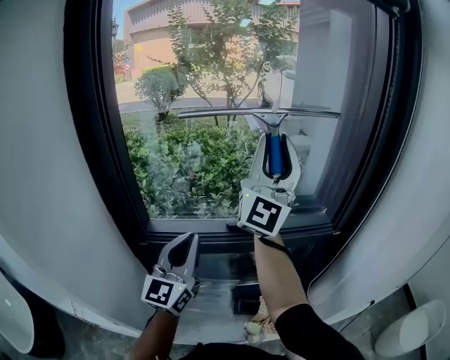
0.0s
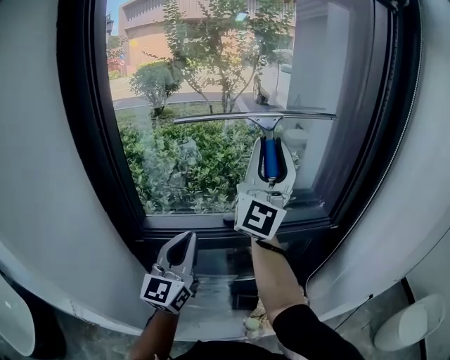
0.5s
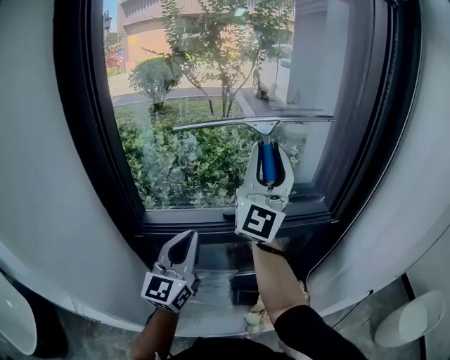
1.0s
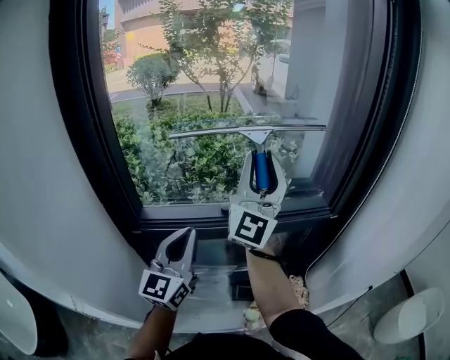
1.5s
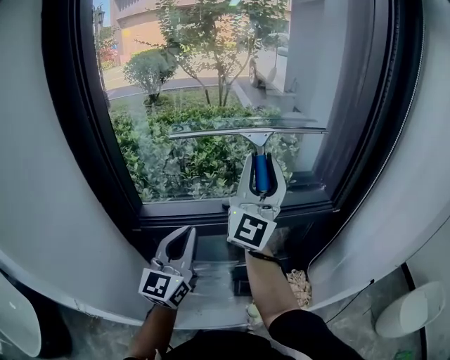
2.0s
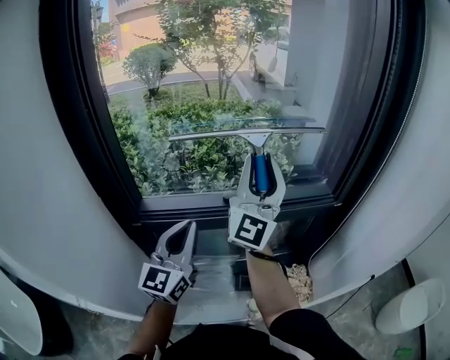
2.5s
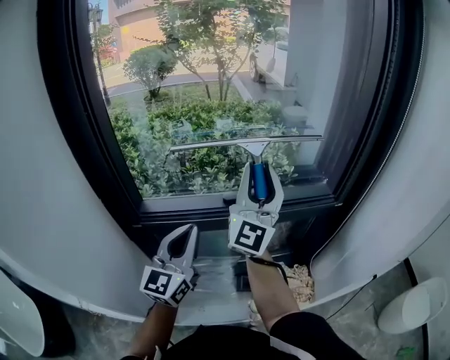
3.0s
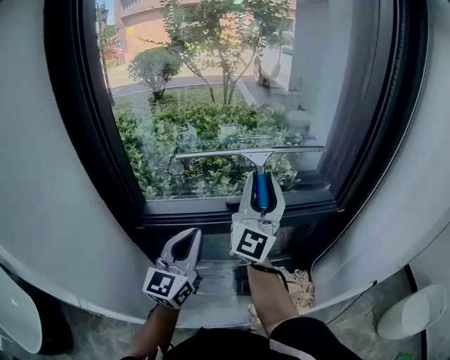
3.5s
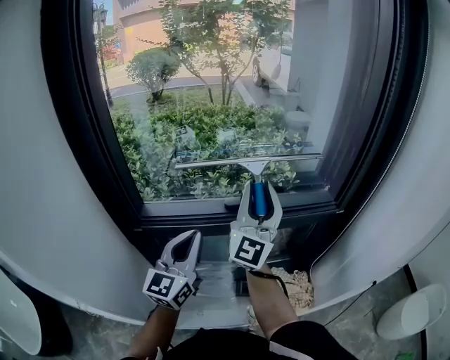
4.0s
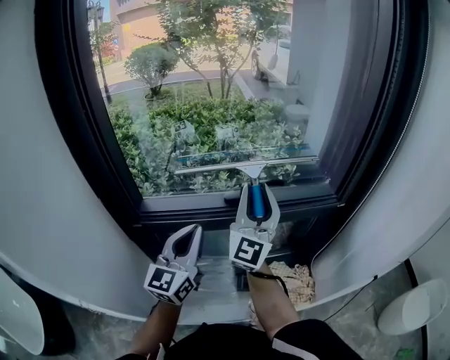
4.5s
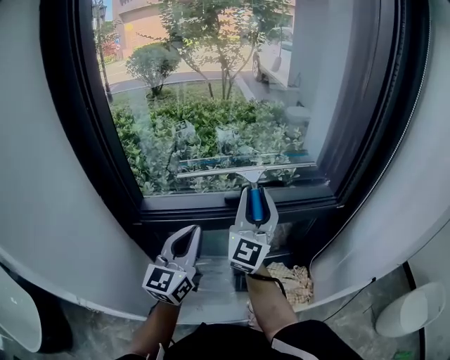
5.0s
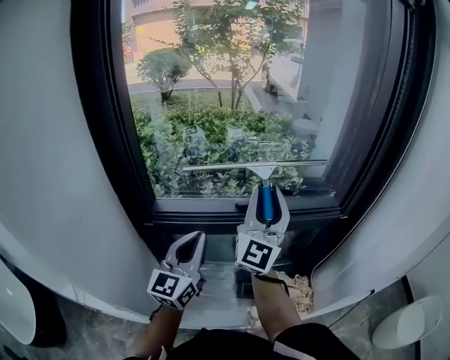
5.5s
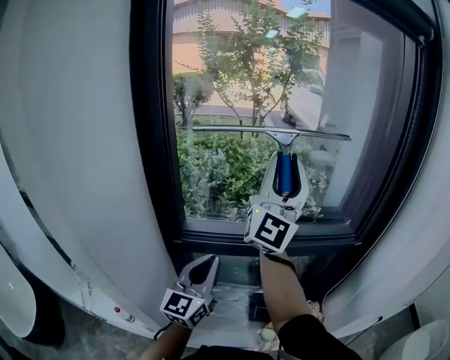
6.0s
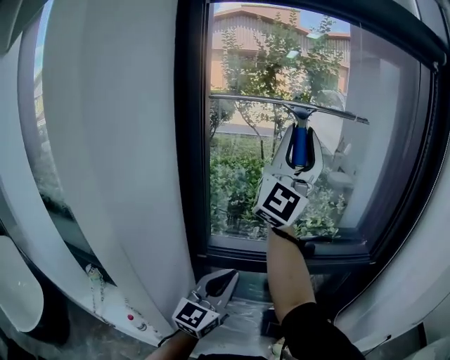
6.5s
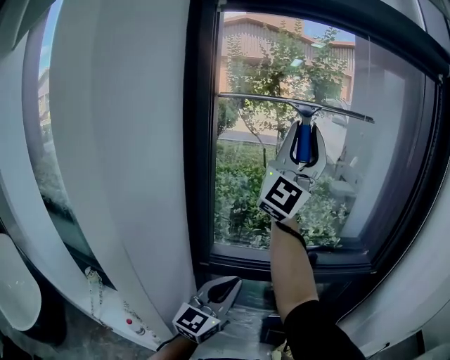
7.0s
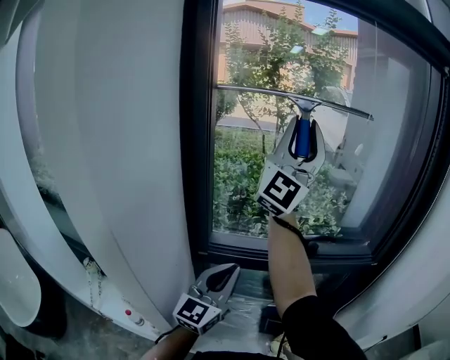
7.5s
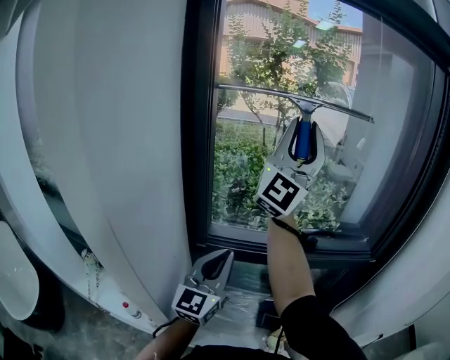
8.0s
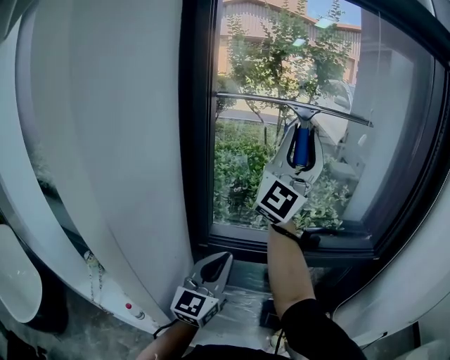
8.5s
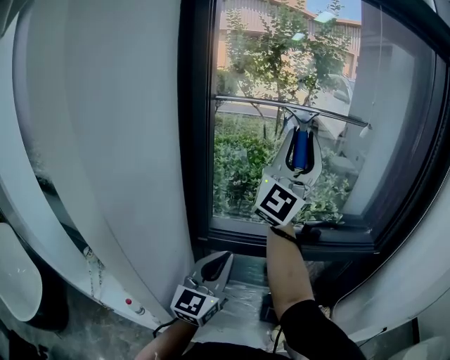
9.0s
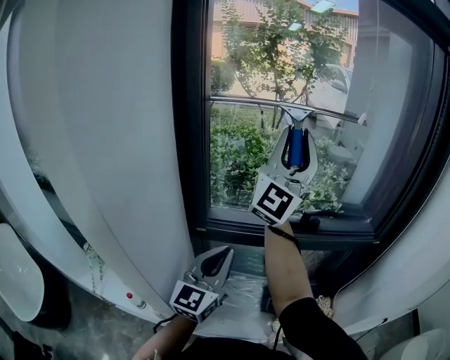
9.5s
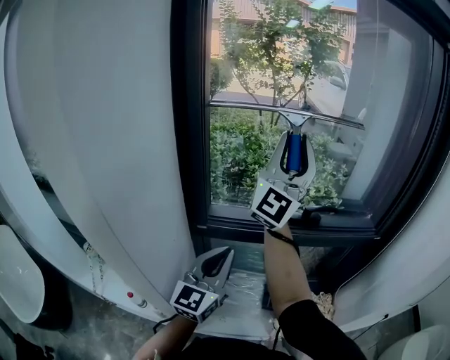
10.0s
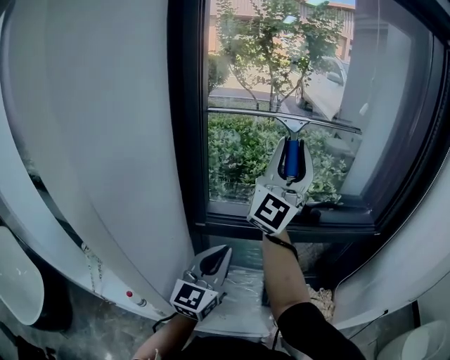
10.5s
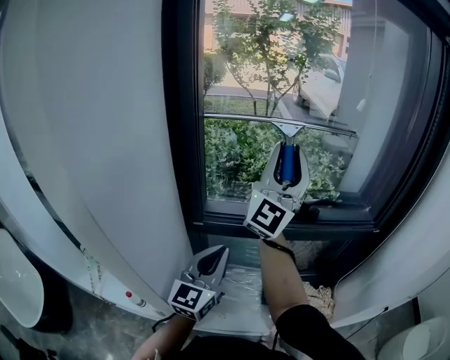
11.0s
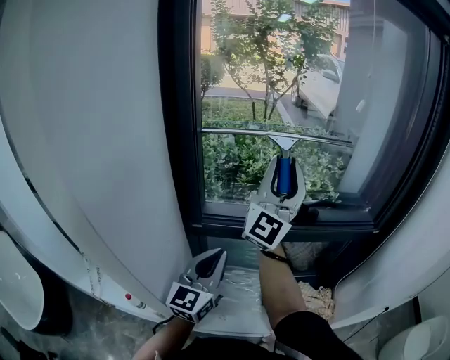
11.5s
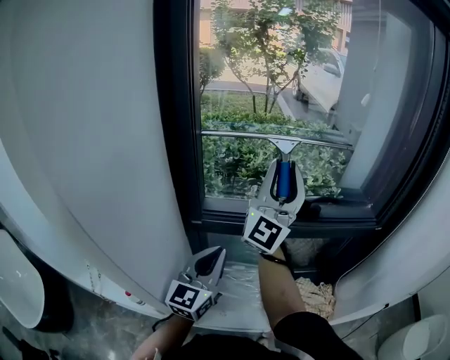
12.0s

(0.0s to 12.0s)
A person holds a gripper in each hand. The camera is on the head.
0.0s - 2.0s: The right gripper heads downward, covering approximately 10 cm.
2.0s - 4.0s: The right gripper heads downward, covering approximately 10 cm.
4.0s - 6.0s: The right gripper heads upward, covering roughly 15 cm. Meanwhile the left gripper shifts about 5 cm backward.
6.0s - 8.0s: The left gripper changes place by approximately 5 cm. The right gripper moves upward and to the left, some 10 cm.
8.0s - 10.0s: The right gripper is displaced downward by some 10 cm.
10.0s - 12.0s: The right gripper heads downward, covering approximately 10 cm.

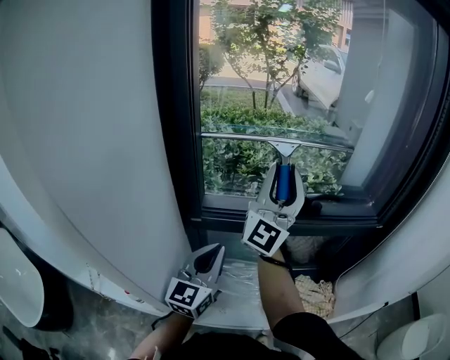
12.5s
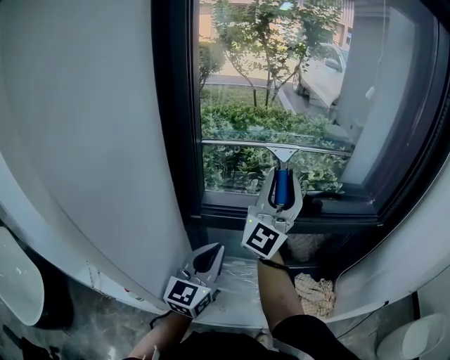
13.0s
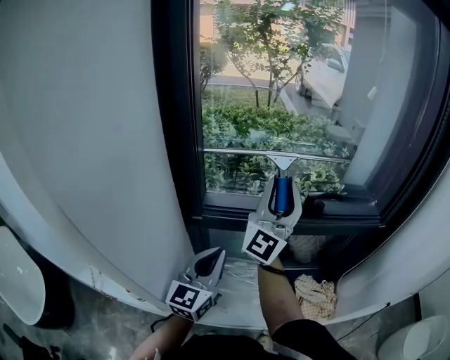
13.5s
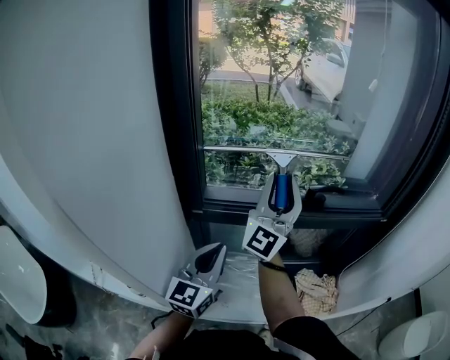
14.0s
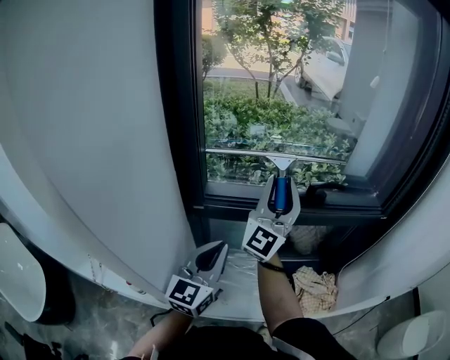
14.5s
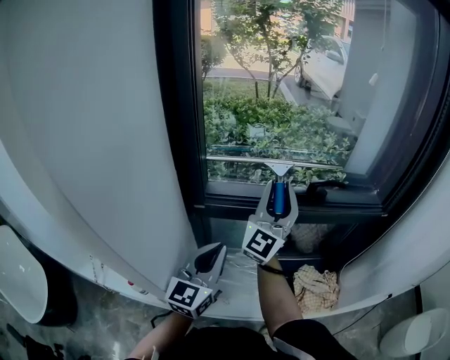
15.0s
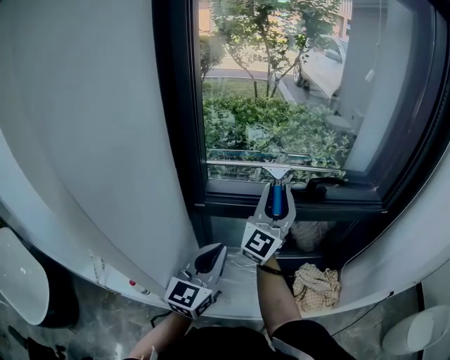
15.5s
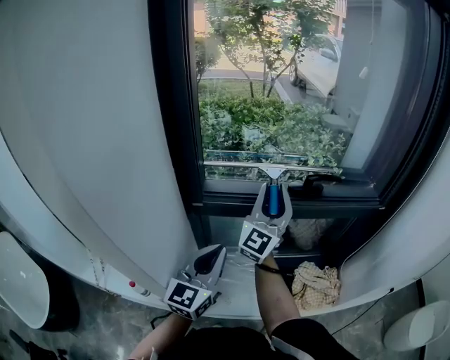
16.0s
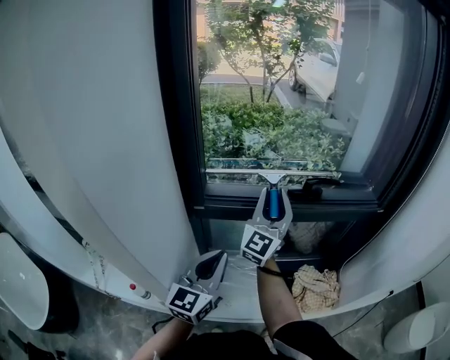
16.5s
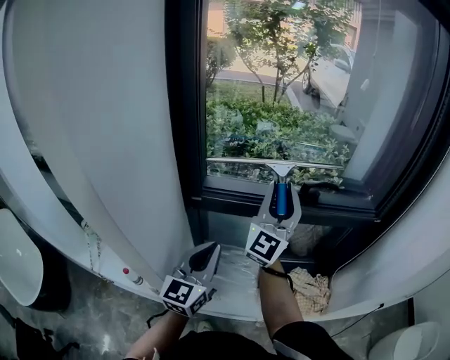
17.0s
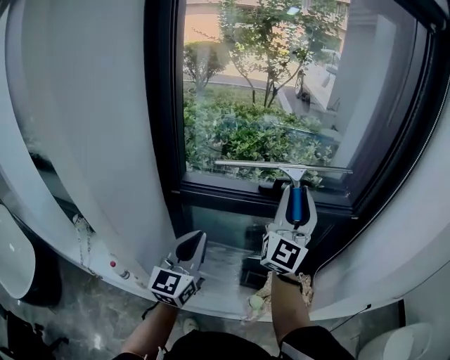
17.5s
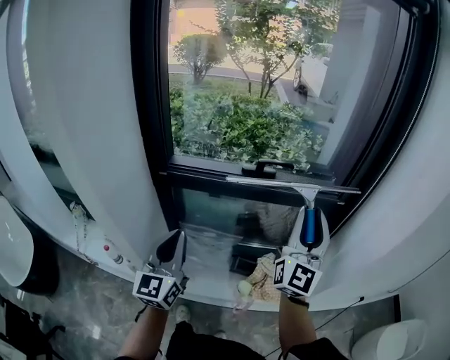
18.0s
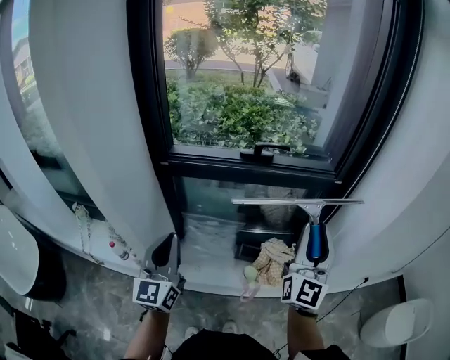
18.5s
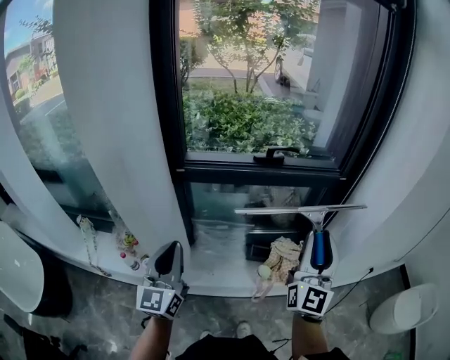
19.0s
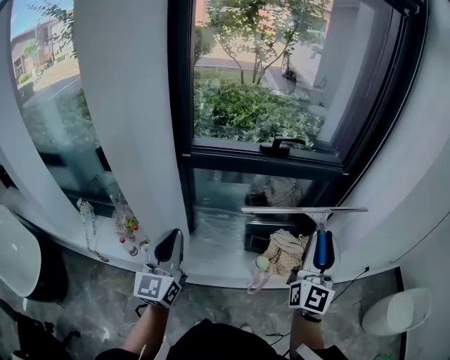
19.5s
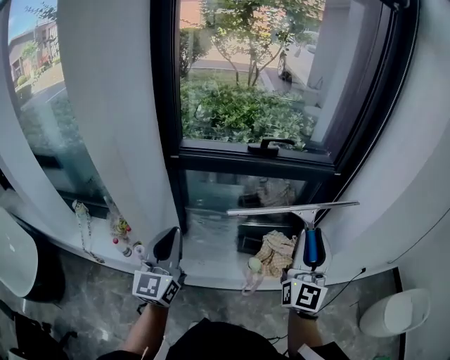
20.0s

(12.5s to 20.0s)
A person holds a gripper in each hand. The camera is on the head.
12.5s - 14.5s: The right gripper goes approximately 10 cm downward.
14.5s - 16.5s: The right gripper is displaced downward by roughly 5 cm.
16.5s - 18.0s: The left gripper moves backward and to the right, about 10 cm; the right gripper shifts approximately 30 cm to the right and backward.
18.0s - 20.0s: The right gripper shifts roughly 15 cm backward, while the left gripper moves backward, approximately 10 cm.

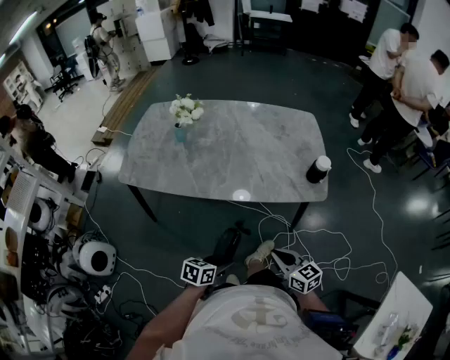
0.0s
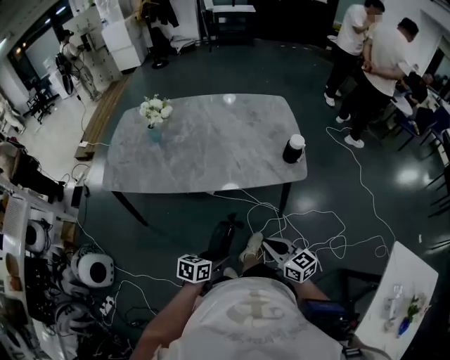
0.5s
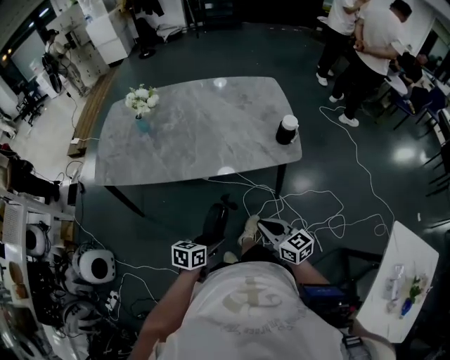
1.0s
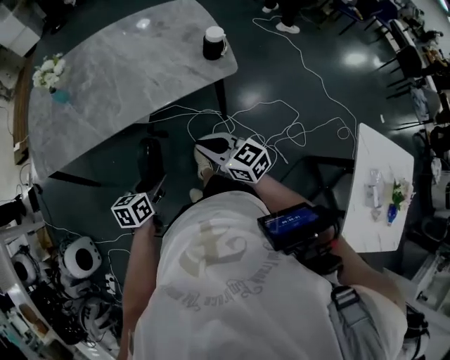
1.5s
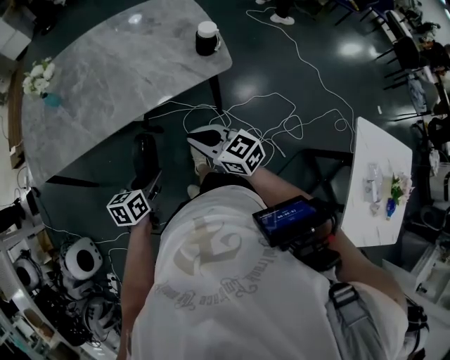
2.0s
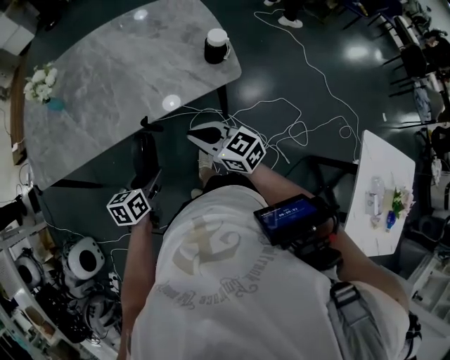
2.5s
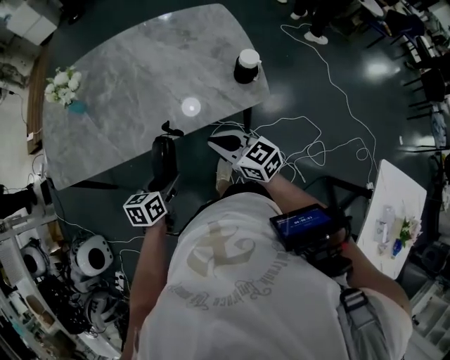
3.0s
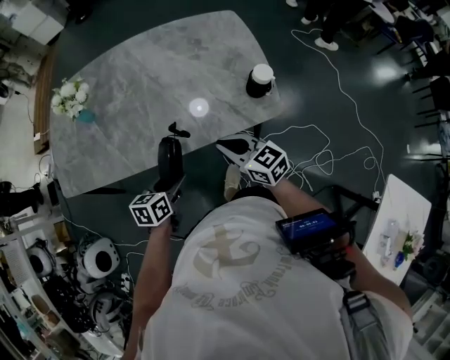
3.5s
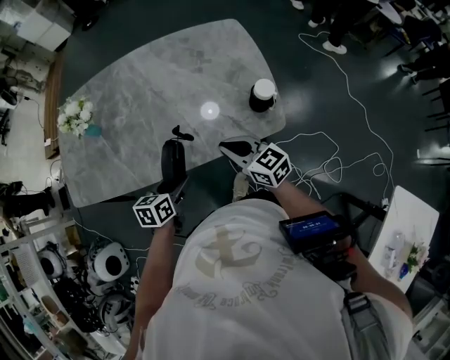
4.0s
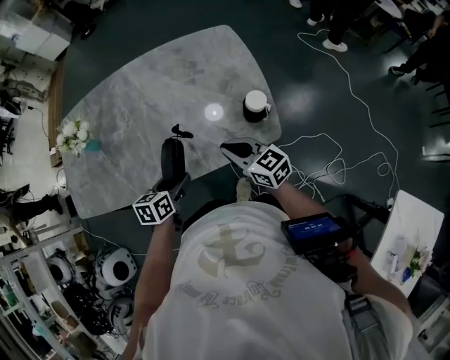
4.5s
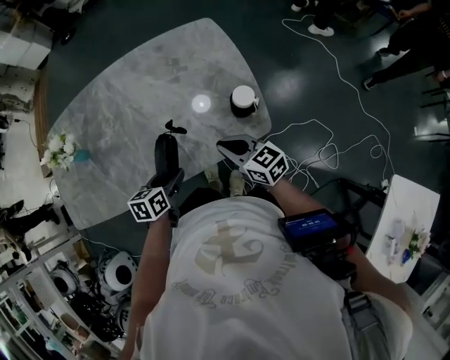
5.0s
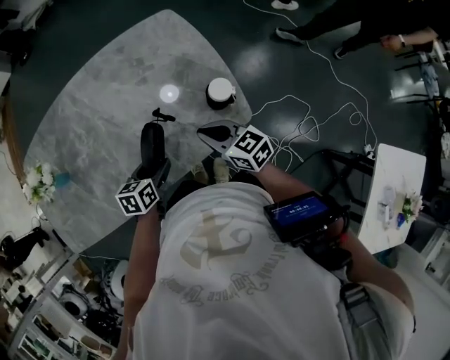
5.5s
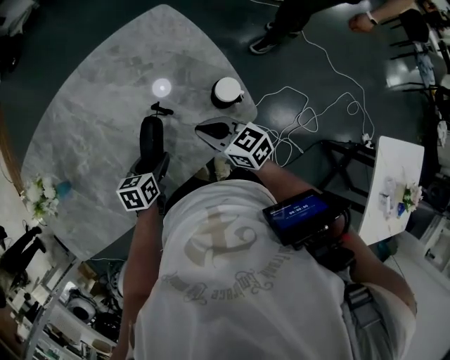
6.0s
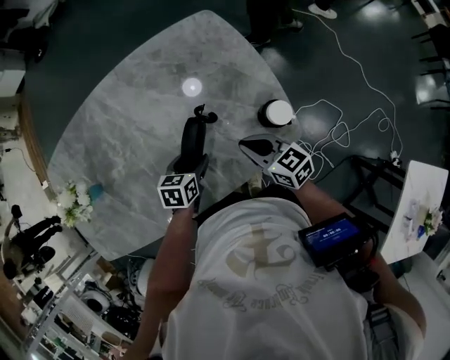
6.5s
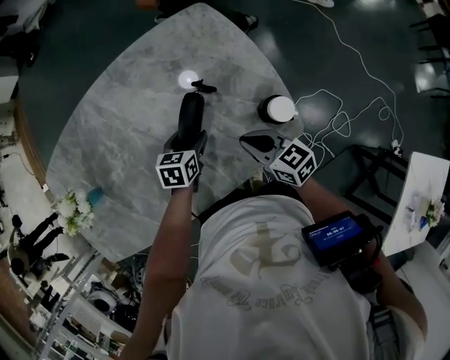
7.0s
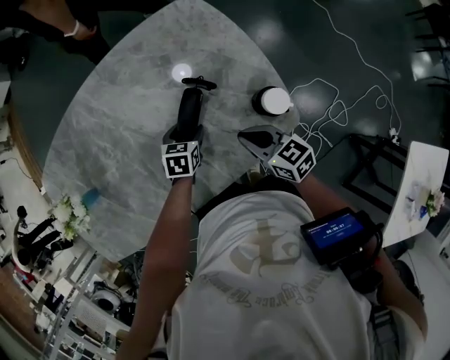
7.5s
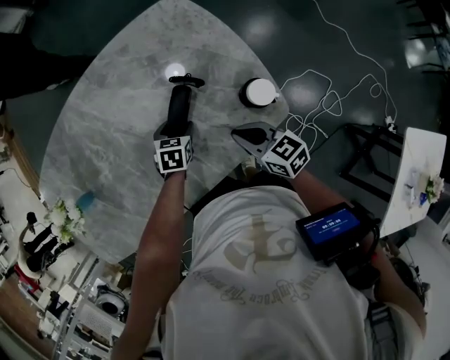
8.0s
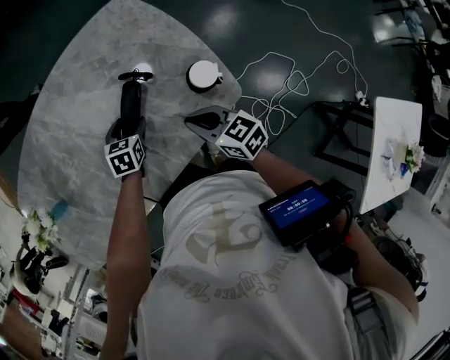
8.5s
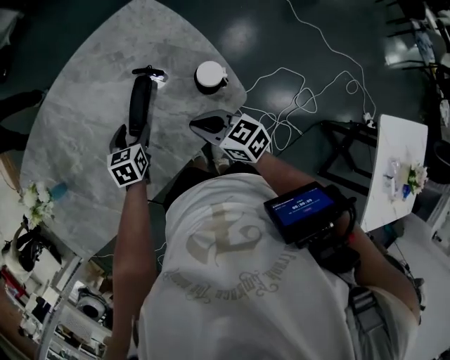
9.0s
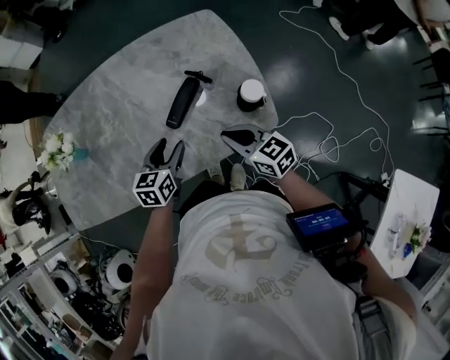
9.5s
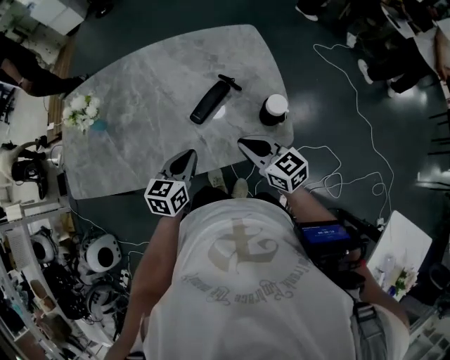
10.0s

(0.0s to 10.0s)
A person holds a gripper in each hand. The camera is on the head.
0.0s - 2.0s: The grippers both shift forward by approximately 5 cm.
2.0s - 4.0s: The grippers both shift forward by roughly 20 cm.
4.0s - 6.0s: The left gripper heads forward, covering approximately 15 cm. The right gripper goes some 10 cm forward.
6.0s - 8.0s: The left gripper is displaced forward and downward by roughly 10 cm, and rotates roughly 20 degrees.
8.0s - 10.0s: The left gripper is displaced upward and backward by about 25 cm, tips its fingers upward by some 30 degrees, and closes. Meanwhile the right gripper heads upward, covering about 10 cm, and swivels approximately 30 degrees.
